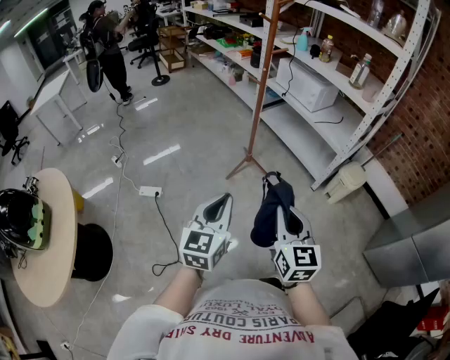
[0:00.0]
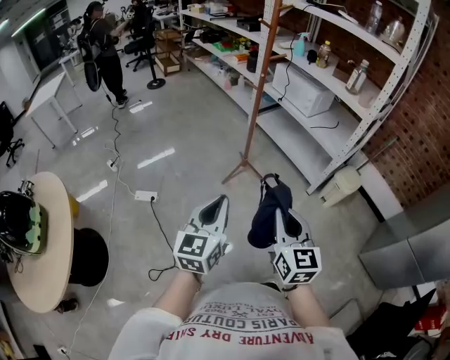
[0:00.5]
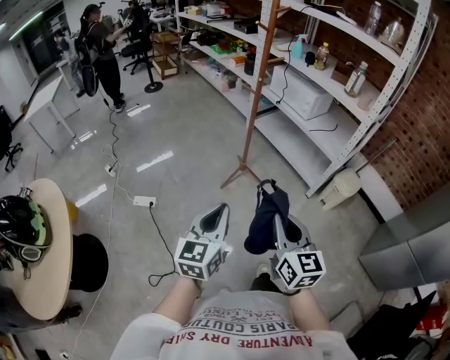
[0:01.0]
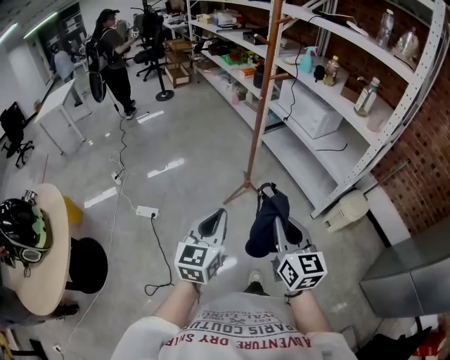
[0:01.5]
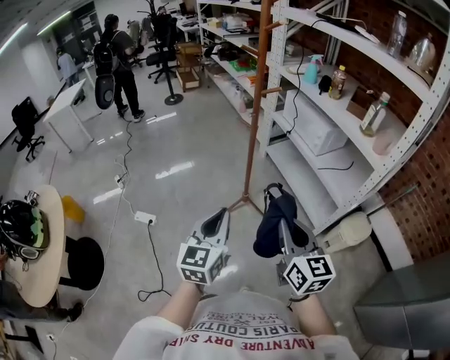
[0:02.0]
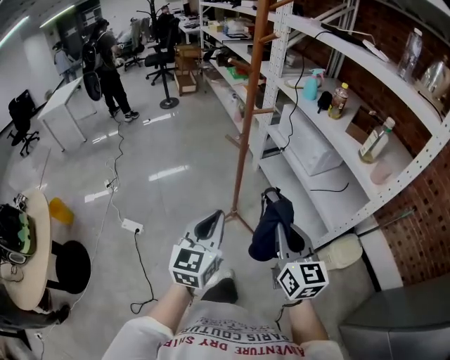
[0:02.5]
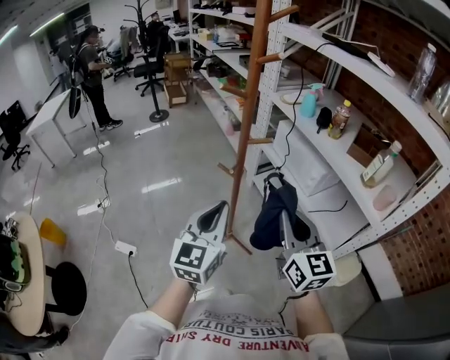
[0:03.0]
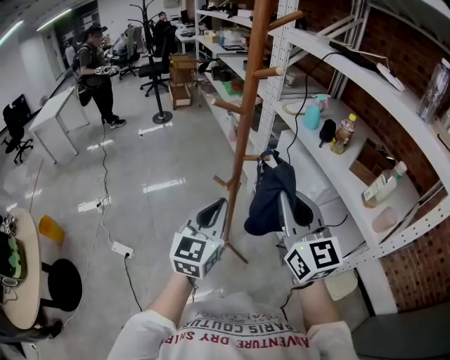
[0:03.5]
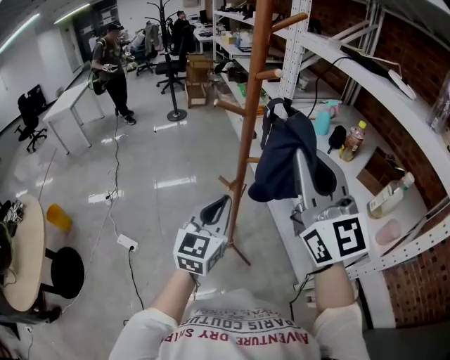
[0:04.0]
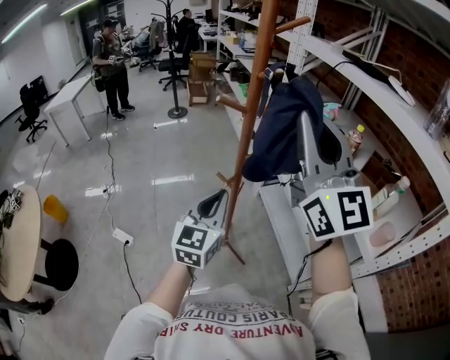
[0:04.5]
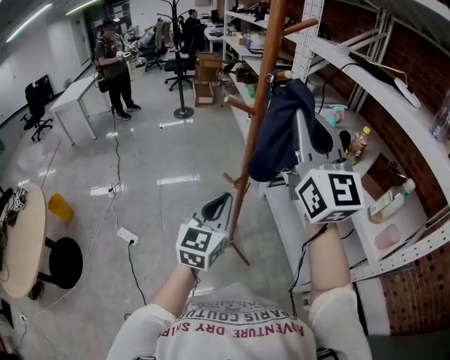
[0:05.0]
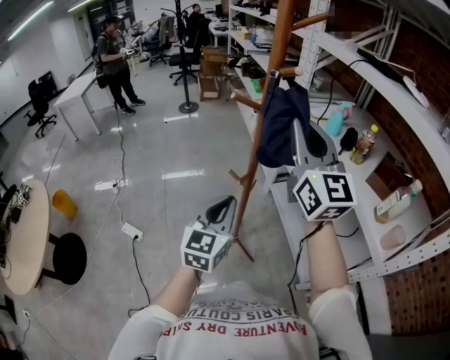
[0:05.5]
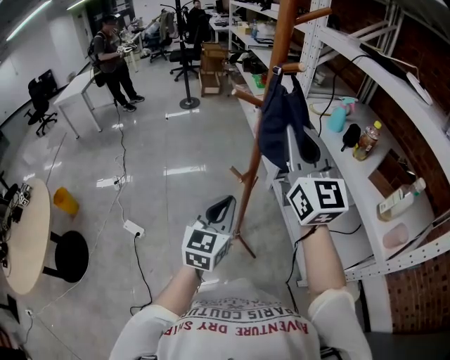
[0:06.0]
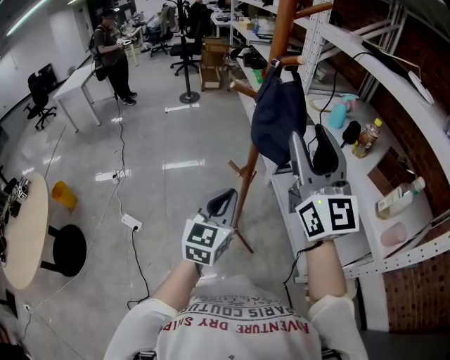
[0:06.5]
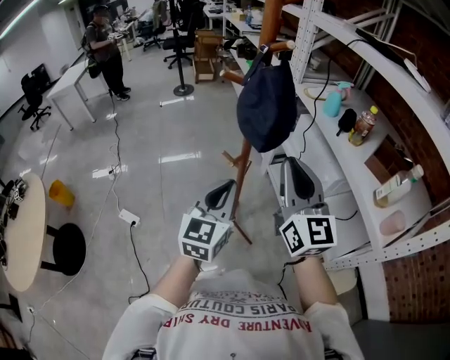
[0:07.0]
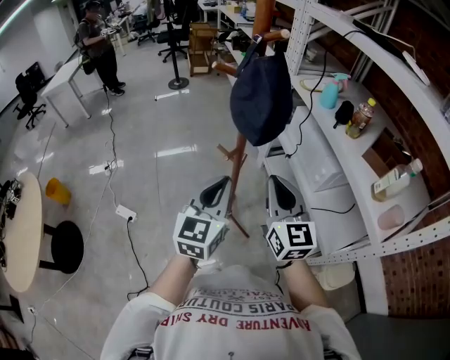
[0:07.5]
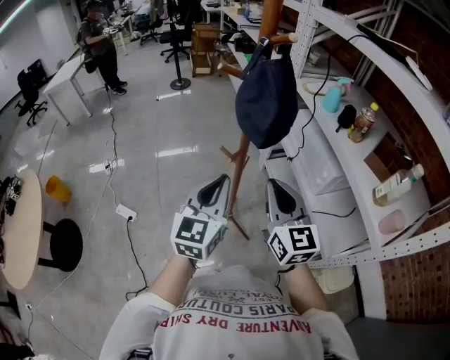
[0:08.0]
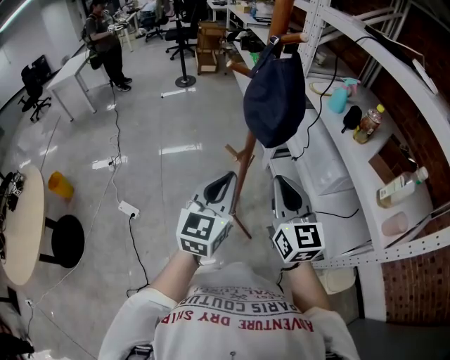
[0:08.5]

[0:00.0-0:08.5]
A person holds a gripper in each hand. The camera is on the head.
0:00.0 to 0:02.0: The grippers both shift forward and to the right by about 30 cm.
0:02.0 to 0:04.0: The left gripper shifts about 35 cm forward, while the right gripper moves forward and upward, about 50 cm, and changes its angle by about 40 degrees.
0:04.0 to 0:06.5: The right gripper travels upward and back again, roughly 5 cm each way, and opens its fingers.
0:06.5 to 0:08.5: The right gripper travels downward by roughly 20 cm, swivels approximately 20 degrees, and closes its fingers.

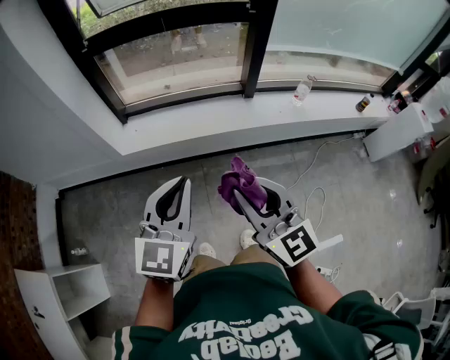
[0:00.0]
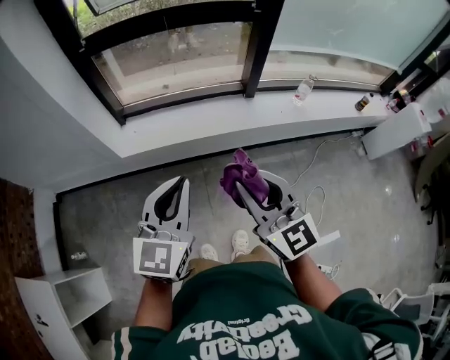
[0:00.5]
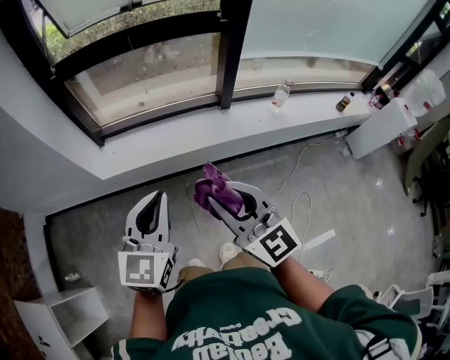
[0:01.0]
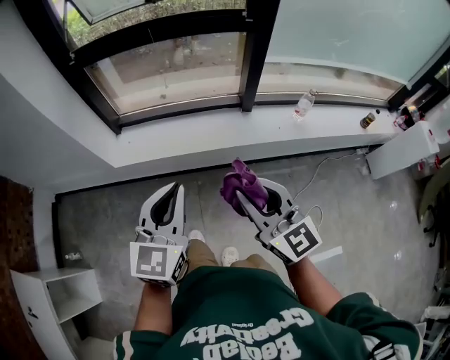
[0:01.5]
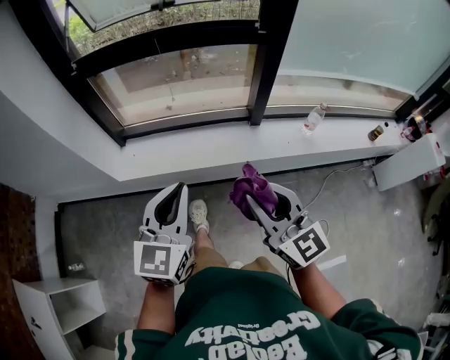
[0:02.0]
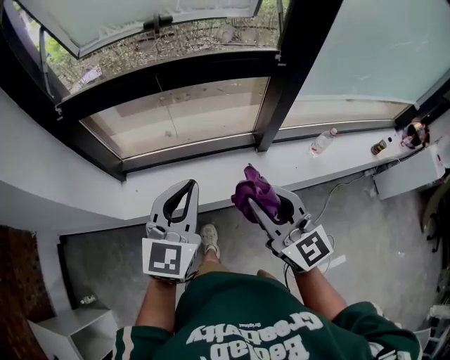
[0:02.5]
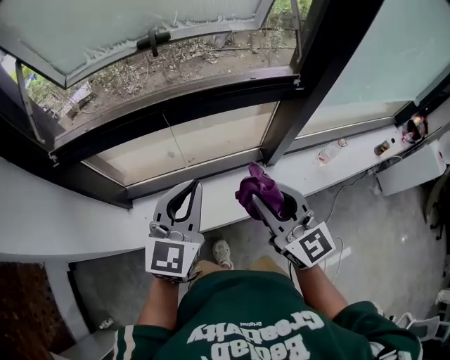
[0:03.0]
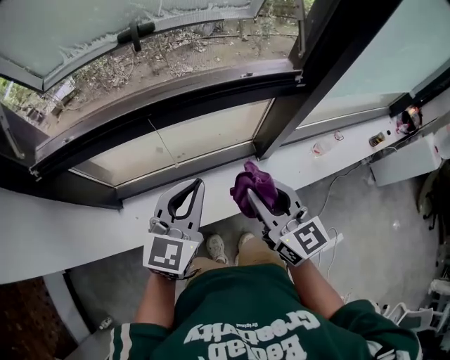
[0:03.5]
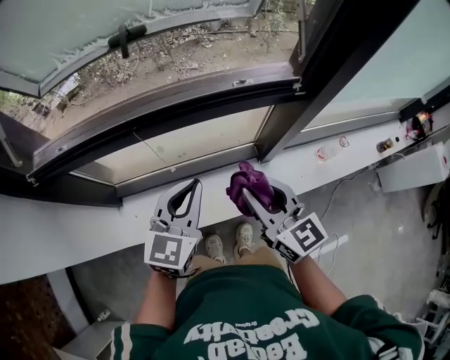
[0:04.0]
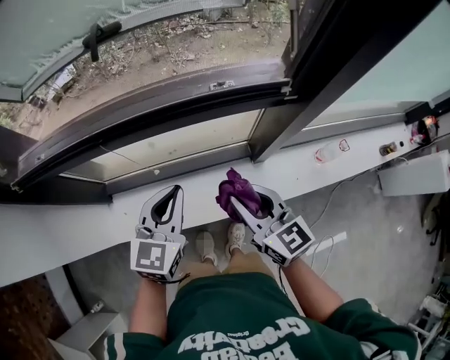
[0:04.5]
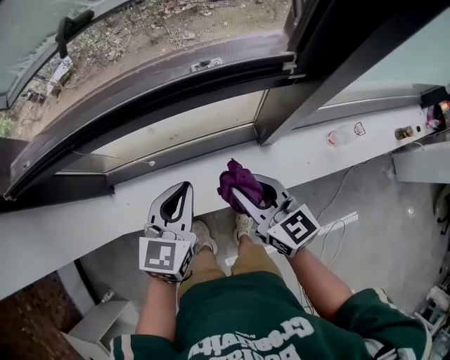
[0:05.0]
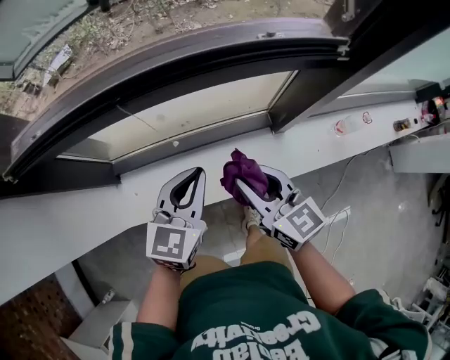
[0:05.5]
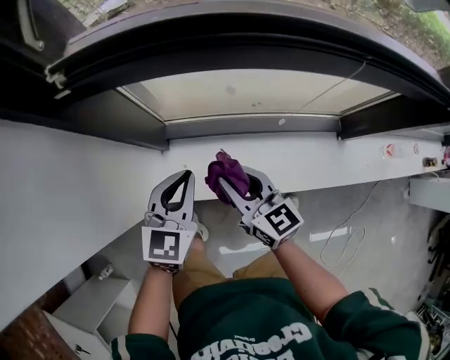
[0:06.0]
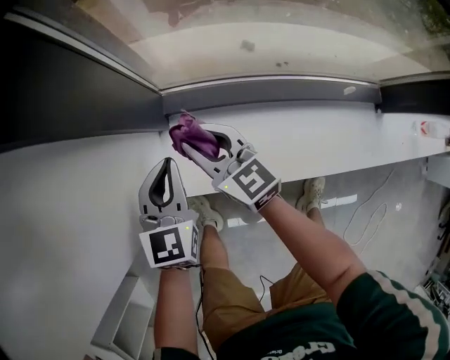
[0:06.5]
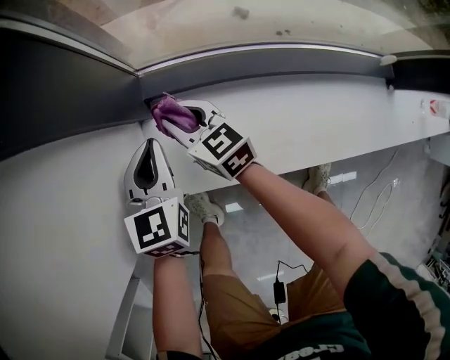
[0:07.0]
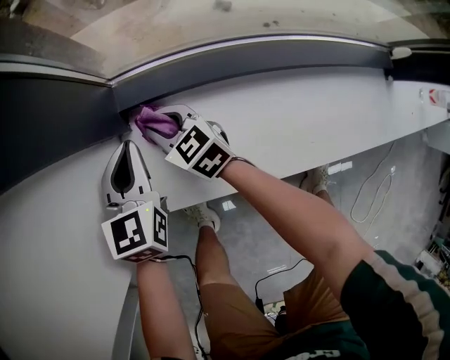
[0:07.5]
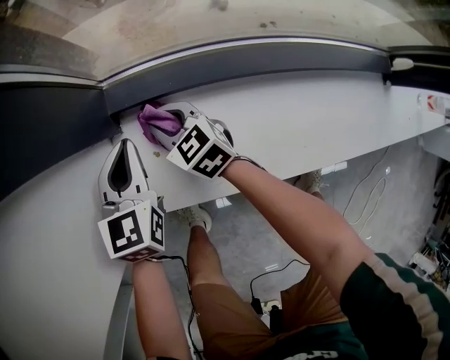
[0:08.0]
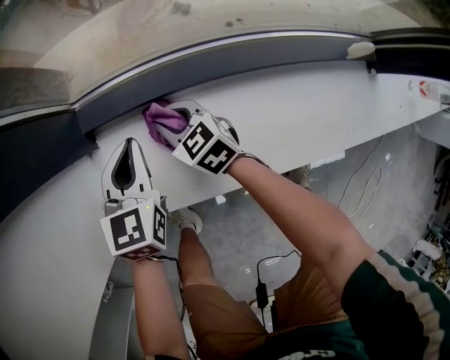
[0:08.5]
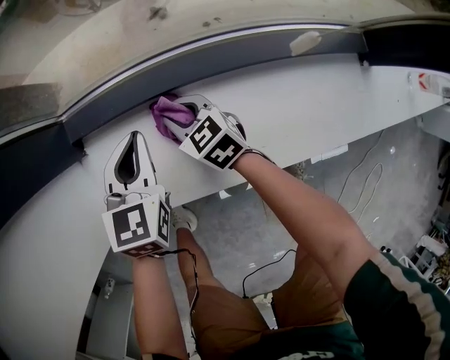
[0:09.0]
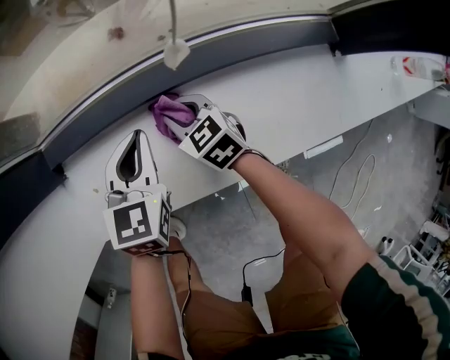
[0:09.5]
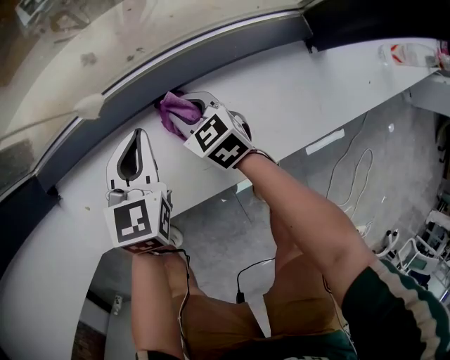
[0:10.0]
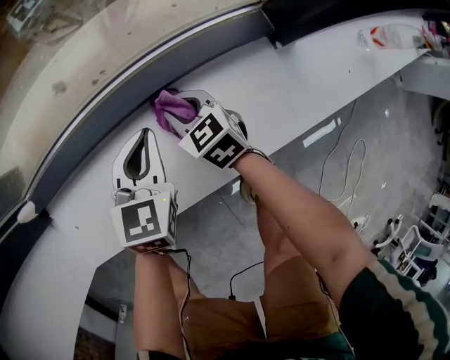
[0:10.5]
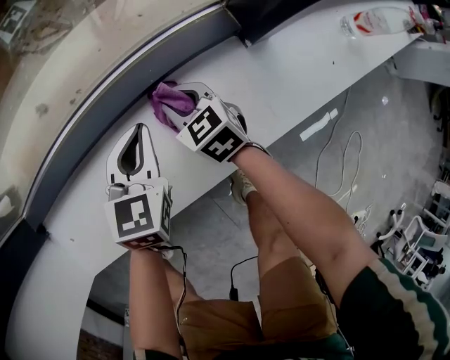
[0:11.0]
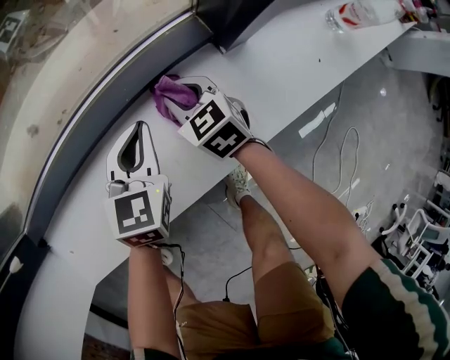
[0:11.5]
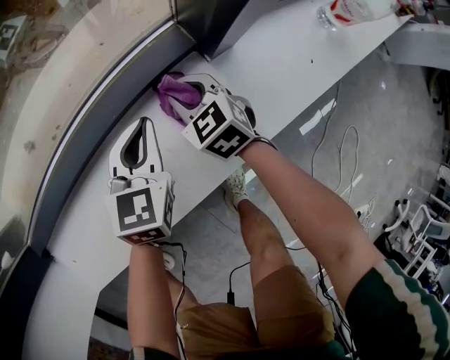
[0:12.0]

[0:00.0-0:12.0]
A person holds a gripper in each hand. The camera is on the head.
0:00.0 to 0:02.0: The left gripper shifts some 15 cm forward. The right gripper shifts roughly 20 cm forward and to the right.
0:02.0 to 0:04.0: The pair of grippers is taken forward, about 40 cm.
0:04.0 to 0:06.0: The grippers both shift to the left and downward by about 40 cm. The right gripper swivels approximately 20 degrees.
0:06.0 to 0:08.0: The right gripper moves downward and forward, about 40 cm, and swivels about 30 degrees. Meanwhile the left gripper heads downward, covering some 35 cm.
0:08.0 to 0:10.0: The two grippers go about 35 cm to the right.
0:10.0 to 0:12.0: Both grippers travel together to the right, some 30 cm.

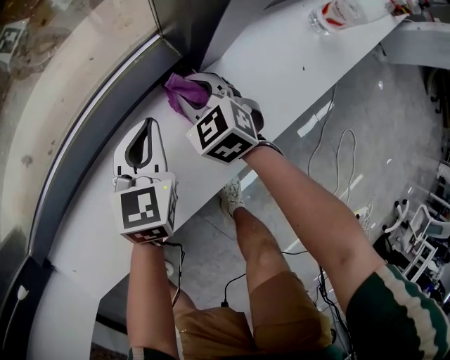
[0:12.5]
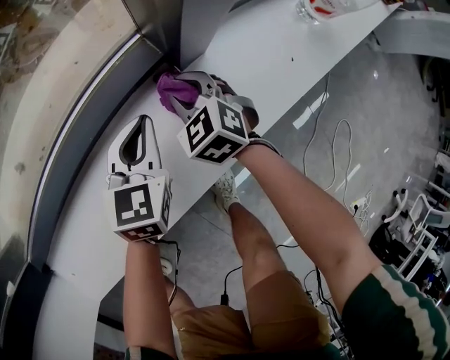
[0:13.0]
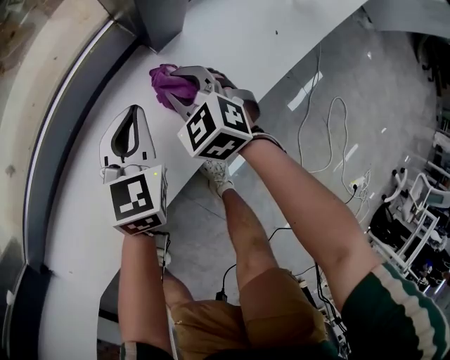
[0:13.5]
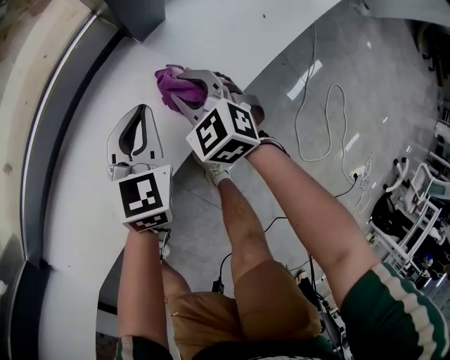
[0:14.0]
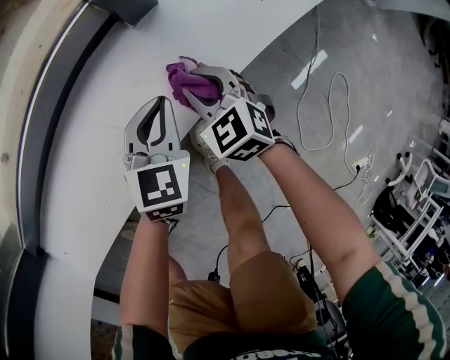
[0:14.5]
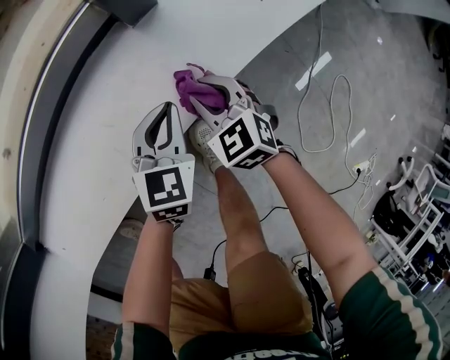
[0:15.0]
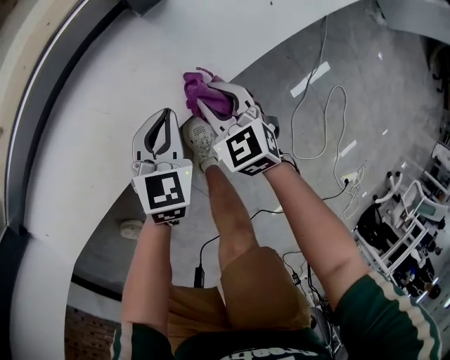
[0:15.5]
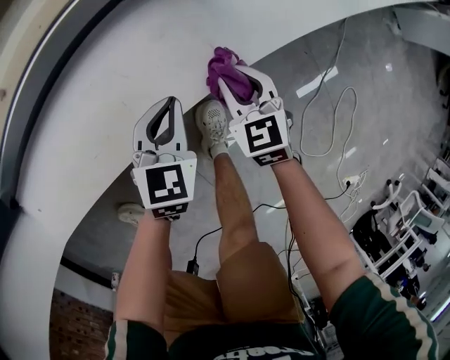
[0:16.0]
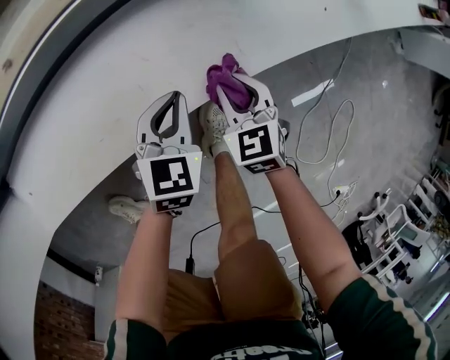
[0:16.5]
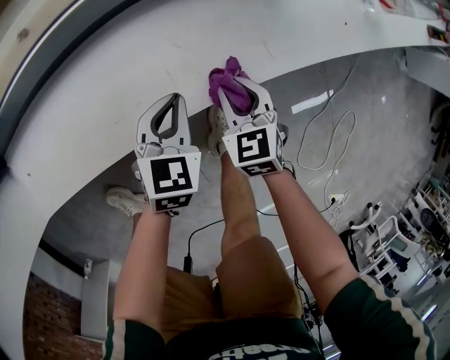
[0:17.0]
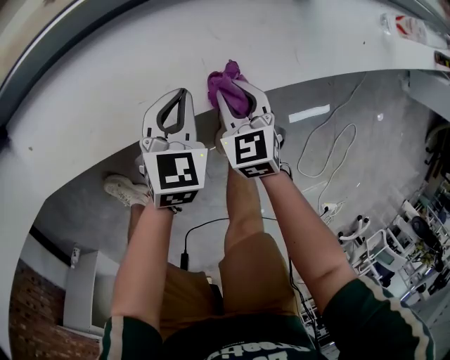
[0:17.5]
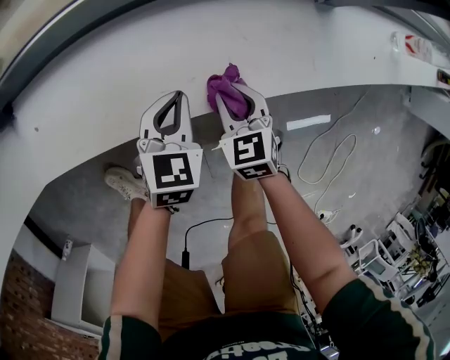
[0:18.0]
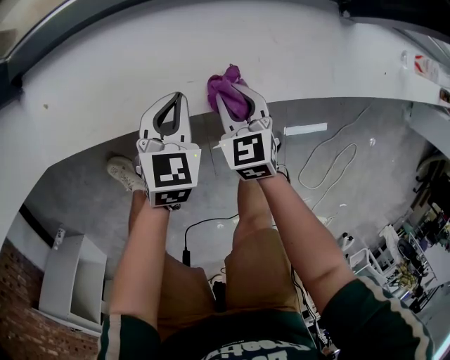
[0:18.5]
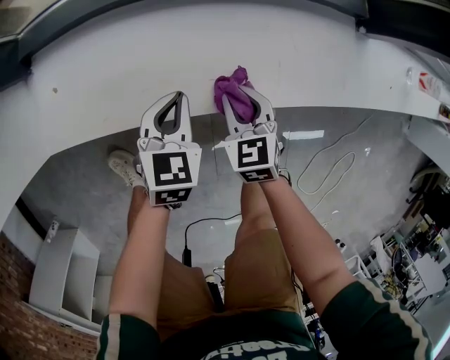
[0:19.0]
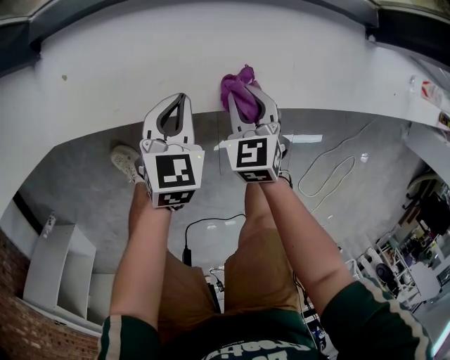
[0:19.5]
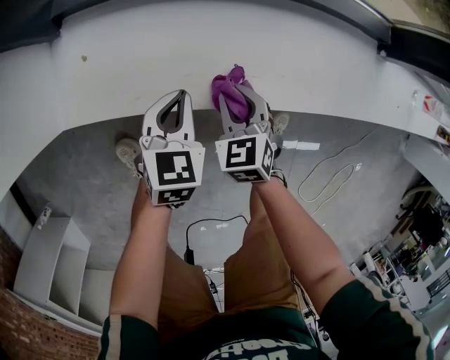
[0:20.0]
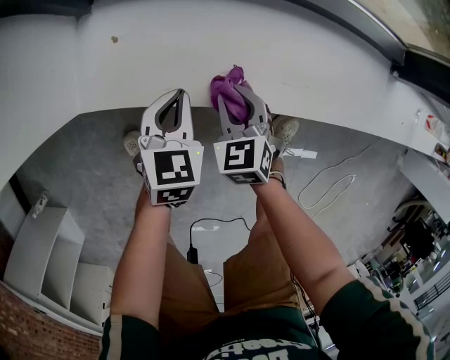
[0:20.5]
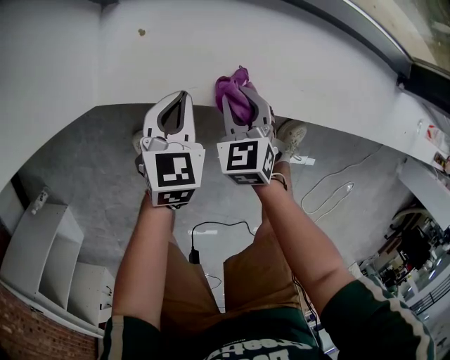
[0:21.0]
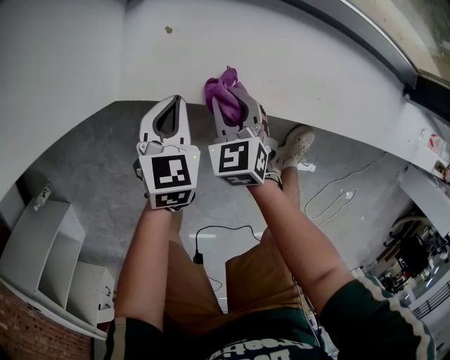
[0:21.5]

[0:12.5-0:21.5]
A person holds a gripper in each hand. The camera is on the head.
0:12.5 to 0:14.5: The grippers both shift backward and to the right by approximately 15 cm.
0:14.5 to 0:17.0: The two grippers go approximately 15 cm to the left and backward.
0:17.0 to 0:19.5: Both grippers travel together to the left, some 25 cm.
0:19.5 to 0:21.5: The two grippers go approximately 25 cm to the left.
